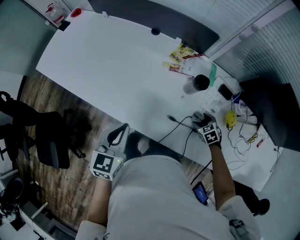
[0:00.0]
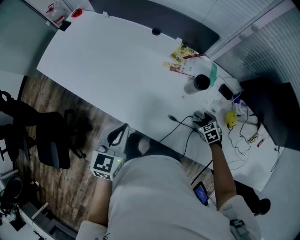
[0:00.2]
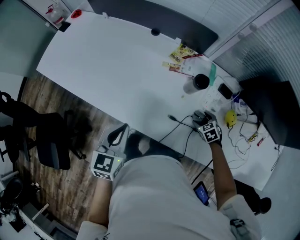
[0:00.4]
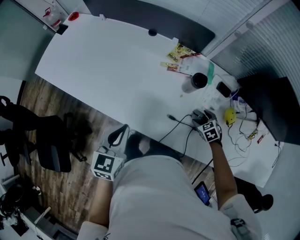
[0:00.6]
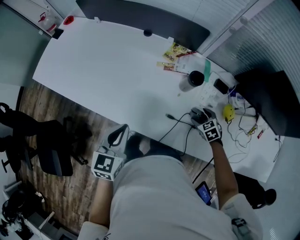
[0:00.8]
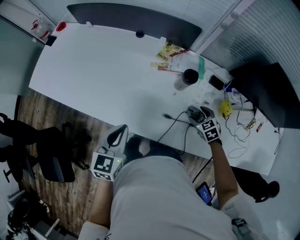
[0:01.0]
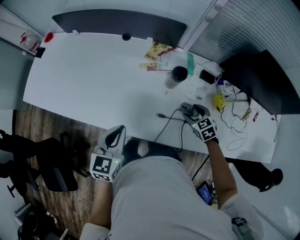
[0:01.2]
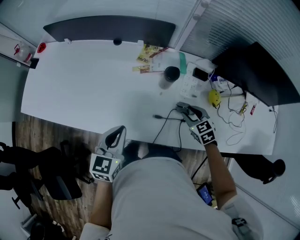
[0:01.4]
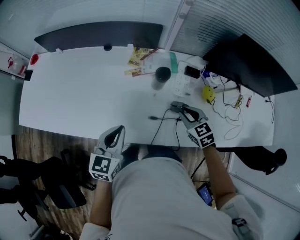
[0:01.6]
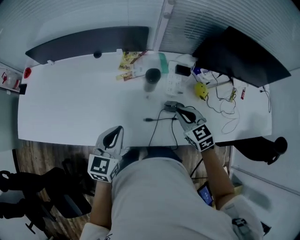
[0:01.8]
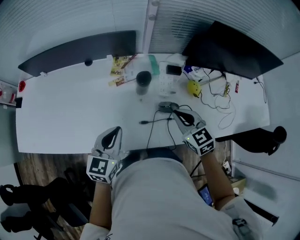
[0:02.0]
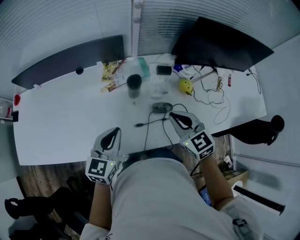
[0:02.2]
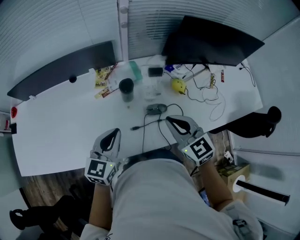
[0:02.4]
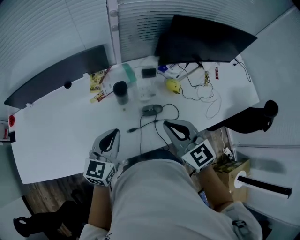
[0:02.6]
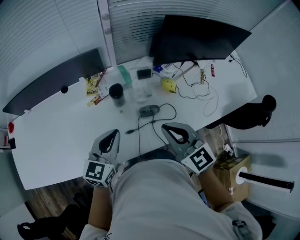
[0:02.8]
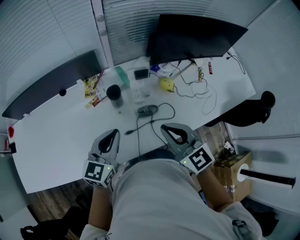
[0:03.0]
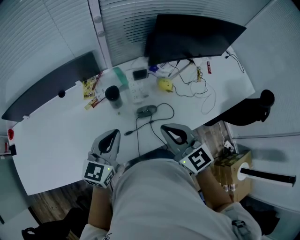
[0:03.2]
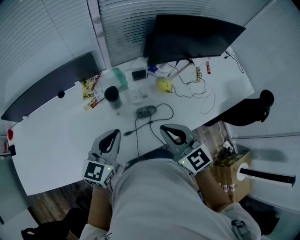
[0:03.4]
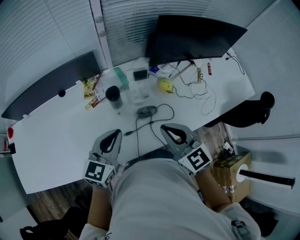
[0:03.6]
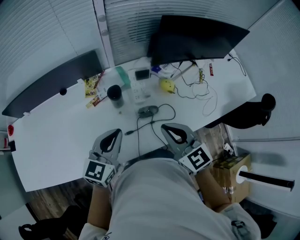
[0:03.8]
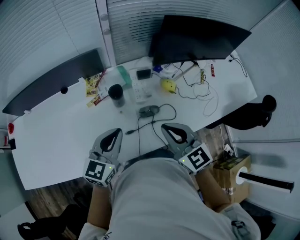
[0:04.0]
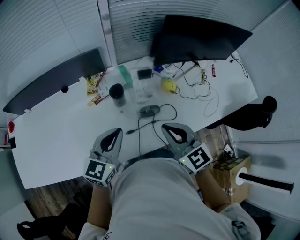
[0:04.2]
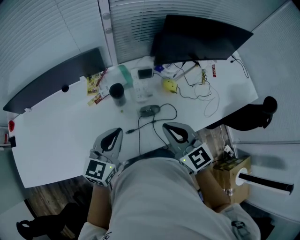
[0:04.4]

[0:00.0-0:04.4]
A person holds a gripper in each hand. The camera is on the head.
0:00.0 to 0:01.4: The right gripper travels upward by approximately 10 cm, changes its angle by about 20 degrees, and closes.
0:01.4 to 0:03.0: The right gripper moves upward, some 25 cm, tilts its fingers roughly 30 degrees upward, and closes up, while the left gripper changes place by roughly 15 cm, and rotates about 30 degrees.
0:03.0 to 0:04.4: The grippers stay close to where they were, moving slightly.

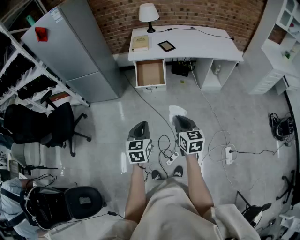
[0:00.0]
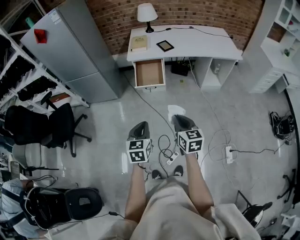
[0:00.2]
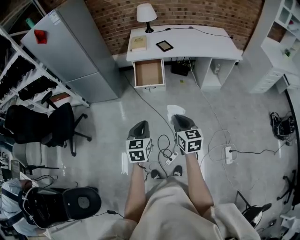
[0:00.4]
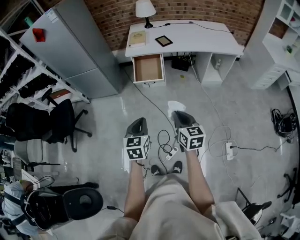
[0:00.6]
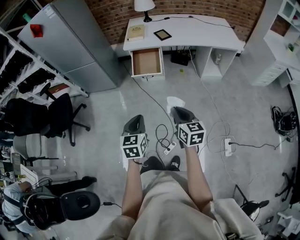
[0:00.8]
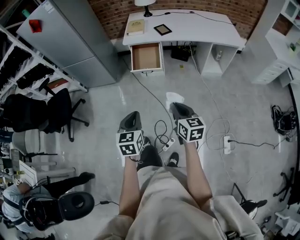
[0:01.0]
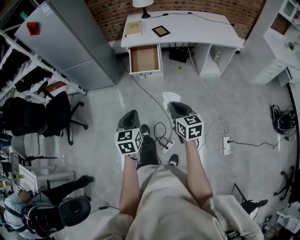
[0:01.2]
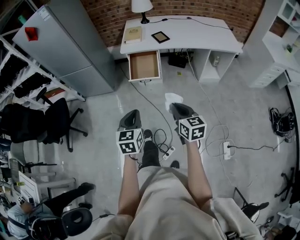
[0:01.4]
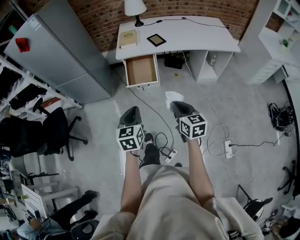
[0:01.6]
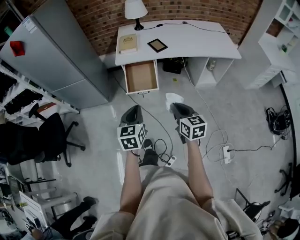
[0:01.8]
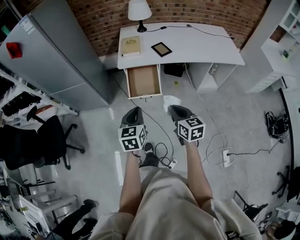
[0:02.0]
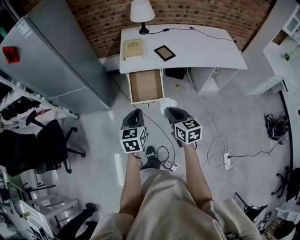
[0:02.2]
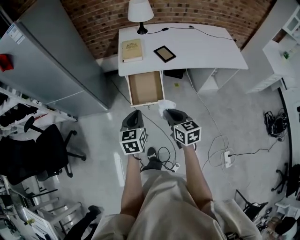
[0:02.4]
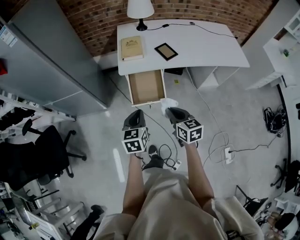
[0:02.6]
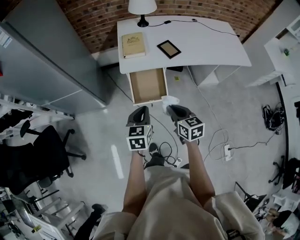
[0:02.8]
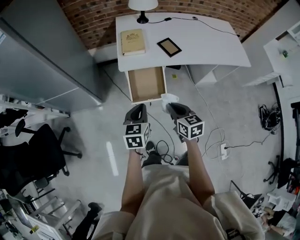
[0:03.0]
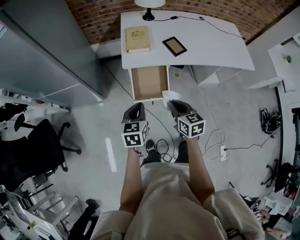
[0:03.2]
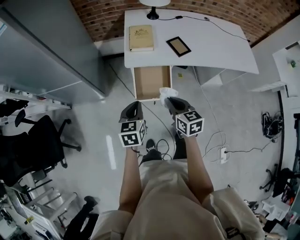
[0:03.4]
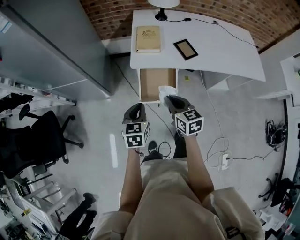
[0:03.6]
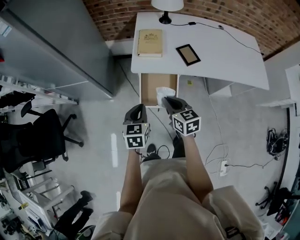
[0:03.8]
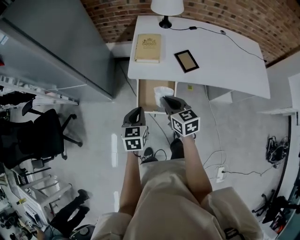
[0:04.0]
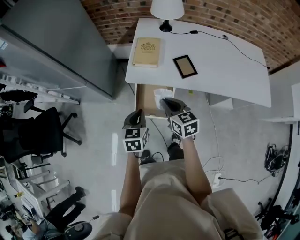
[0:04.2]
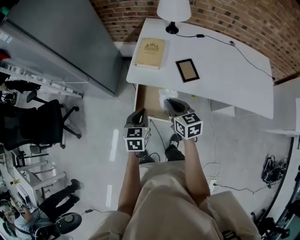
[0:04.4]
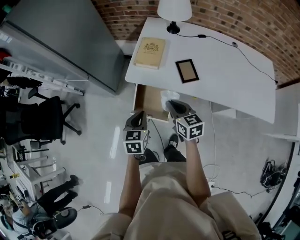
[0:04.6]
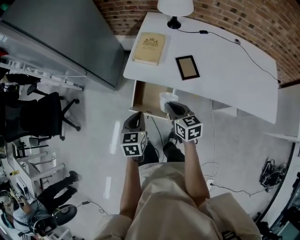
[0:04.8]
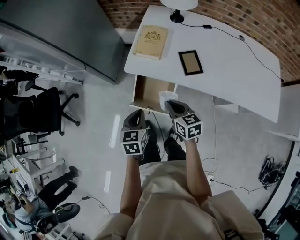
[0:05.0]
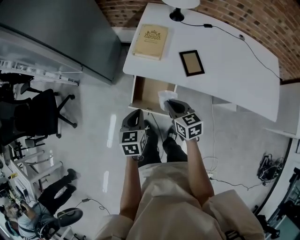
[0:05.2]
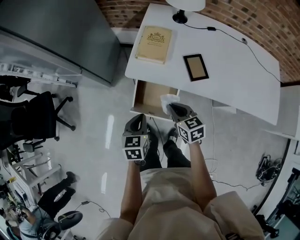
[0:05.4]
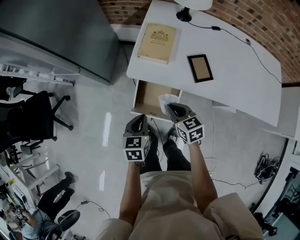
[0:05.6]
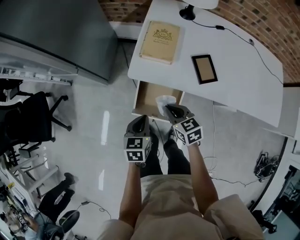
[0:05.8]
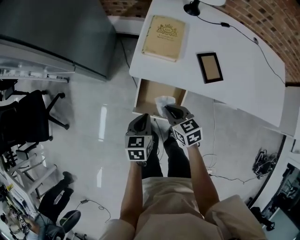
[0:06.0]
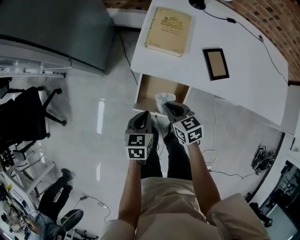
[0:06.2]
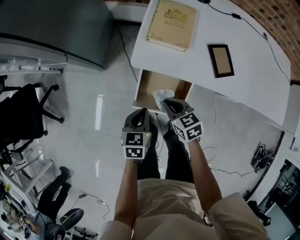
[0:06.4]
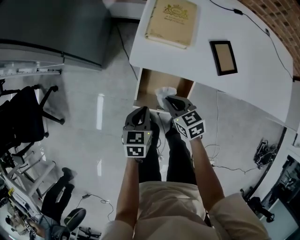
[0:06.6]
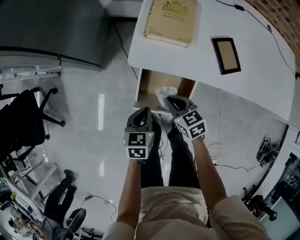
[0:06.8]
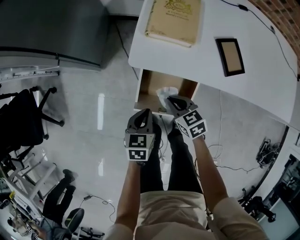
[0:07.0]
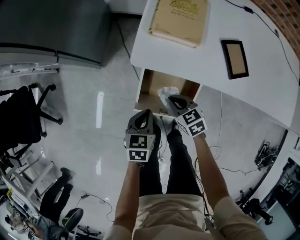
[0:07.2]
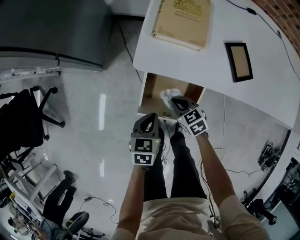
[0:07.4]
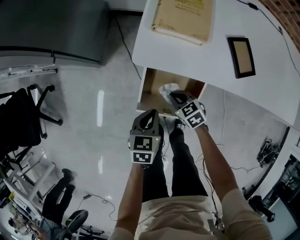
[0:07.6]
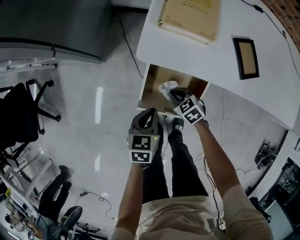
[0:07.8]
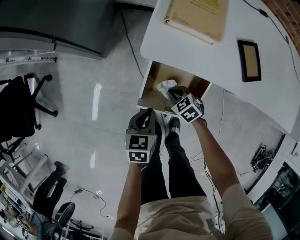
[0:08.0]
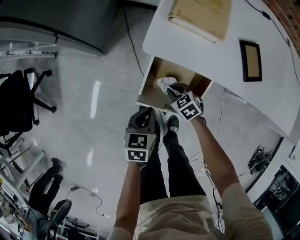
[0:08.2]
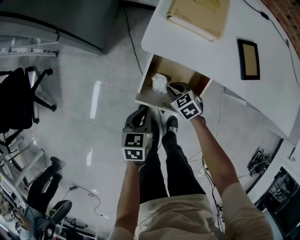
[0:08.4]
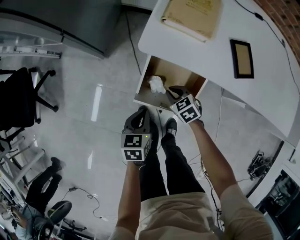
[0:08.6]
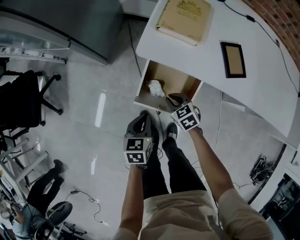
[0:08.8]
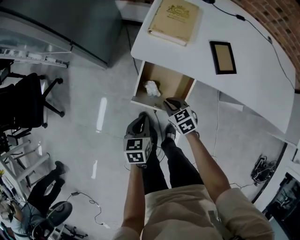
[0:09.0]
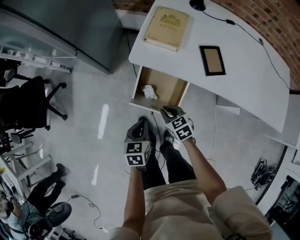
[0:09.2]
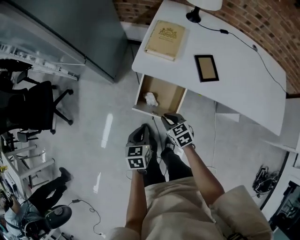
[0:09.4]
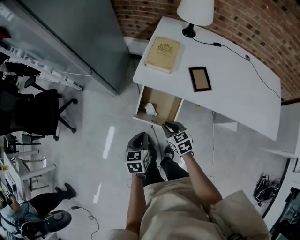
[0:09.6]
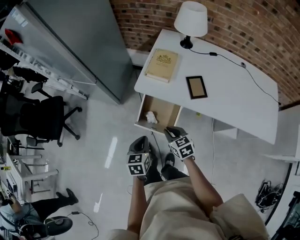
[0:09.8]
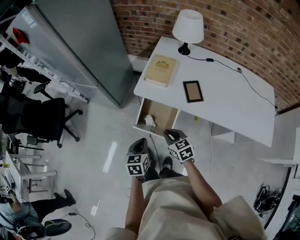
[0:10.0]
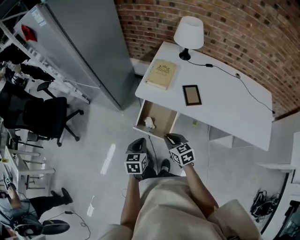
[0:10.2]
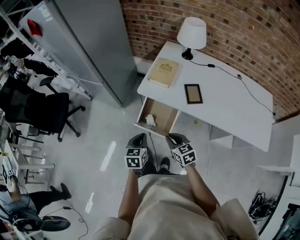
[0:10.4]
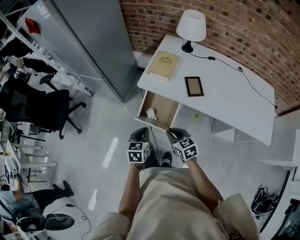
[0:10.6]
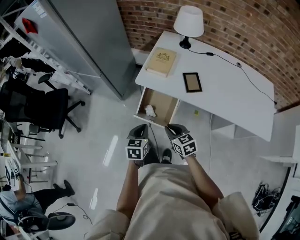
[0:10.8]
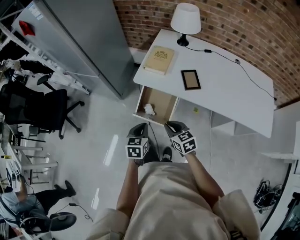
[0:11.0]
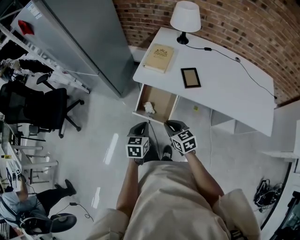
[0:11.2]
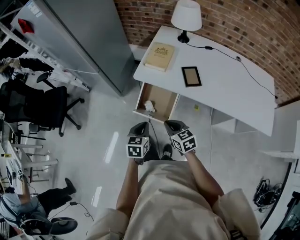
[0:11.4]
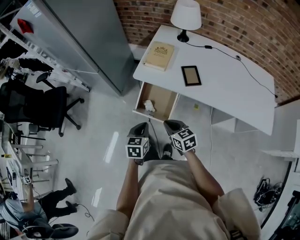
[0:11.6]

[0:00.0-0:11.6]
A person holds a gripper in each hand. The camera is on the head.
0:00.0 to 0:01.4: The left gripper shifts by some 5 cm, while the right gripper is displaced to the right by roughly 5 cm.
0:01.4 to 0:02.8: The grippers both shift forward by about 35 cm.
0:02.8 to 0:04.4: The left gripper moves forward and to the right, roughly 15 cm; the right gripper heads forward, covering about 20 cm, and swivels roughly 20 degrees.
0:04.4 to 0:05.8: The right gripper is displaced downward, to the left and forward by approximately 15 cm. The left gripper heads downward and forward, covering some 15 cm.
0:05.8 to 0:07.2: Both grippers move downward, some 20 cm.
0:07.2 to 0:08.8: The right gripper reaches about 10 cm downward, then returns, while the left gripper moves backward, approximately 5 cm.
0:08.8 to 0:10.2: The grippers both shift upward and backward by roughly 30 cm.
0:10.2 to 0:11.6: The grippers stay close to where they were, moving slightly.

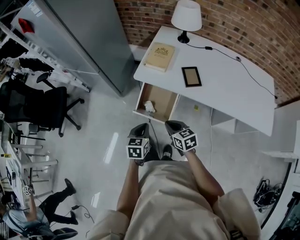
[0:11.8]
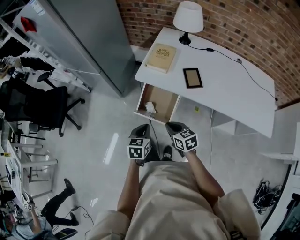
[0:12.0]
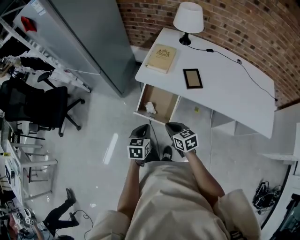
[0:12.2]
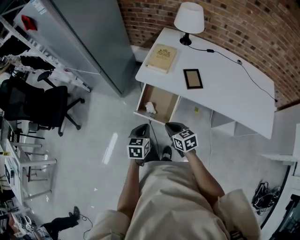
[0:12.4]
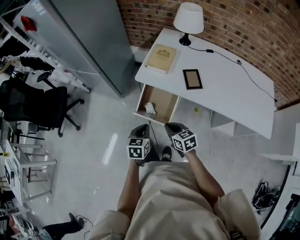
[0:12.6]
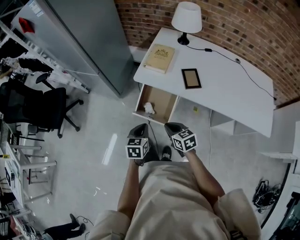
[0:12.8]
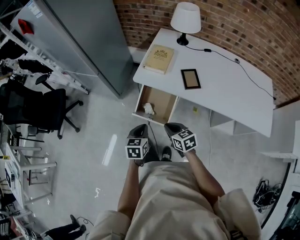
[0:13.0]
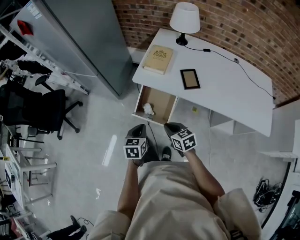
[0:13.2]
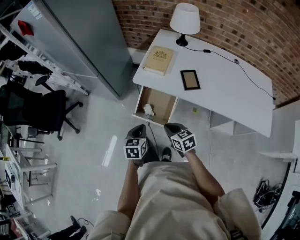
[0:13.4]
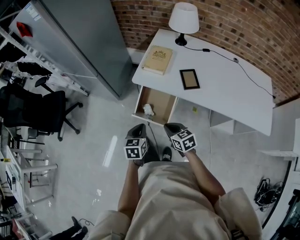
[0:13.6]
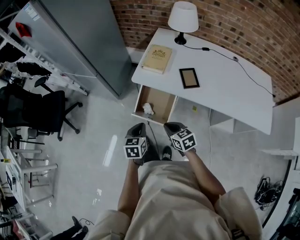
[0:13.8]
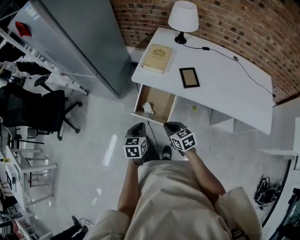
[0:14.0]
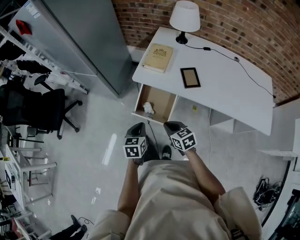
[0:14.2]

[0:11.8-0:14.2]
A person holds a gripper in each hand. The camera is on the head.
0:11.8 to 0:13.0: Both grippers stay put.
0:13.0 to 0:14.2: The grippers stay close to where they were, moving slightly.

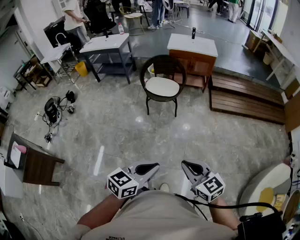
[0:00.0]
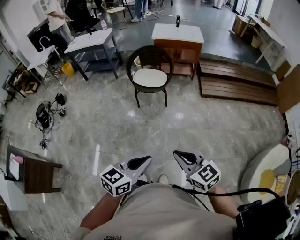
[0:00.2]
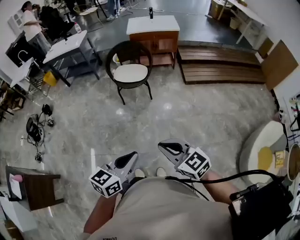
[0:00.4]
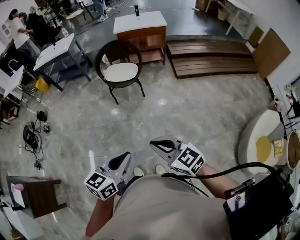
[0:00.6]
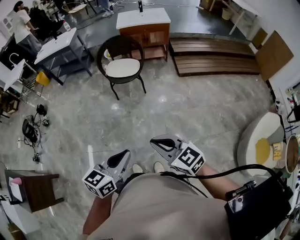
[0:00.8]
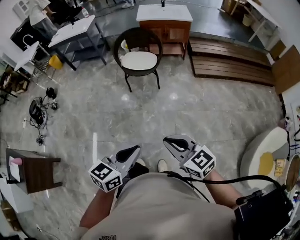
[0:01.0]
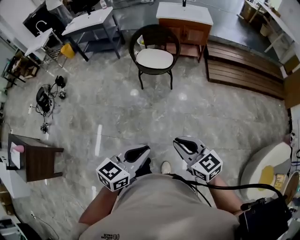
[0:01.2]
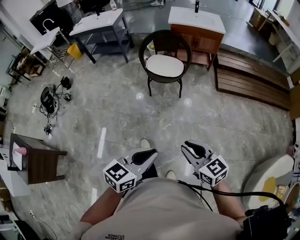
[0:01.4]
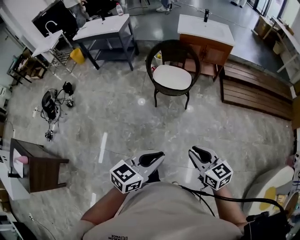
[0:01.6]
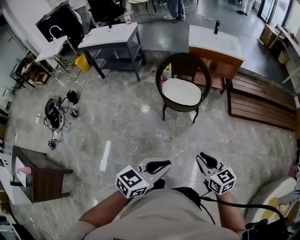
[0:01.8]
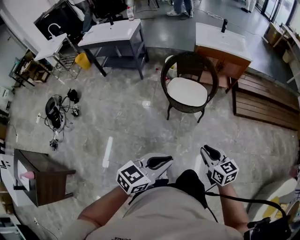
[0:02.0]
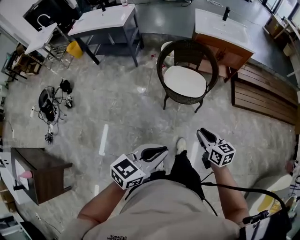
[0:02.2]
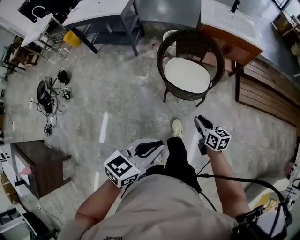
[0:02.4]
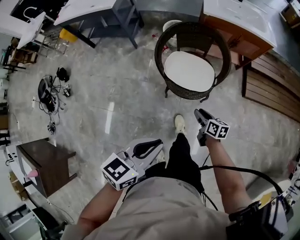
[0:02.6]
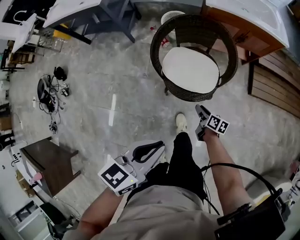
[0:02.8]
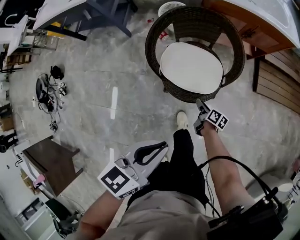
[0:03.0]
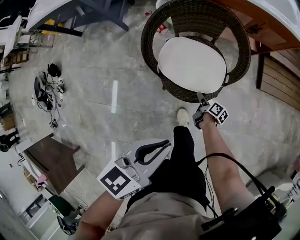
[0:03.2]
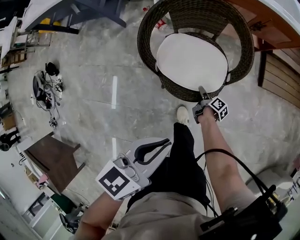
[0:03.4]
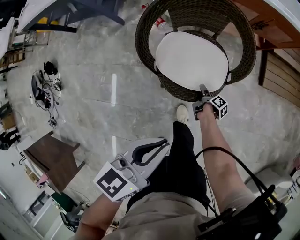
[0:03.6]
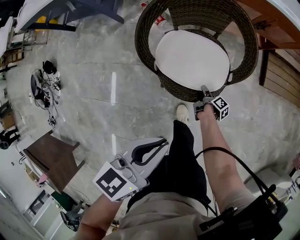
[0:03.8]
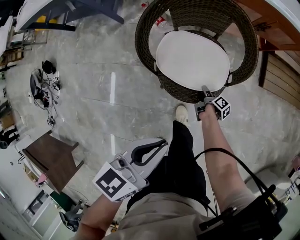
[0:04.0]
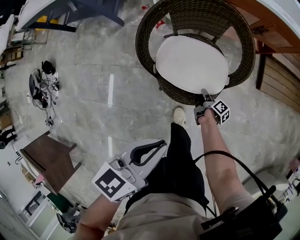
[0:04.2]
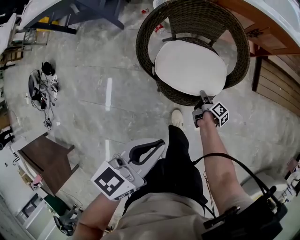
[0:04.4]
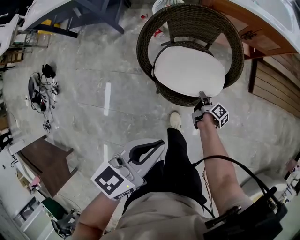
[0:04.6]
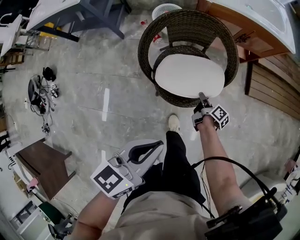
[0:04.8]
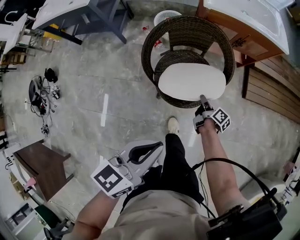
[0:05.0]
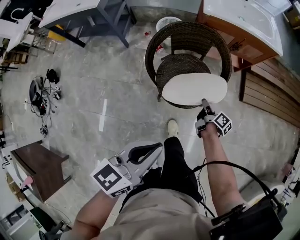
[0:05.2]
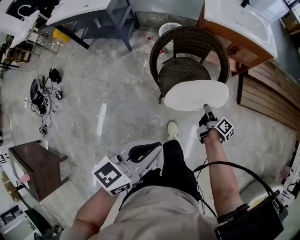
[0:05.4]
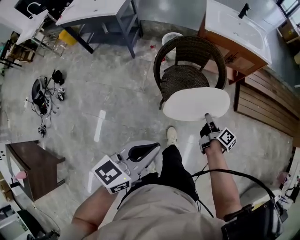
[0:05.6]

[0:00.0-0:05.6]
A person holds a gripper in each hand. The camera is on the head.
0:00.0 to 0:01.4: The right gripper goes some 15 cm forward; the left gripper travels forward and to the left by roughly 15 cm.
0:01.4 to 0:02.8: Both grippers are carried forward, approximately 60 cm. The right gripper travels downward by approximately 40 cm, and twists about 60 degrees clockwise, seen from behind.
0:02.8 to 0:04.2: The right gripper heads downward and forward, covering about 20 cm, rotates some 40 degrees, and closes up; the left gripper shifts about 15 cm forward and downward.
0:04.2 to 0:05.6: The right gripper travels upward by approximately 35 cm, and changes its angle by roughly 30 degrees, while the left gripper heads backward and upward, covering approximately 30 cm.
